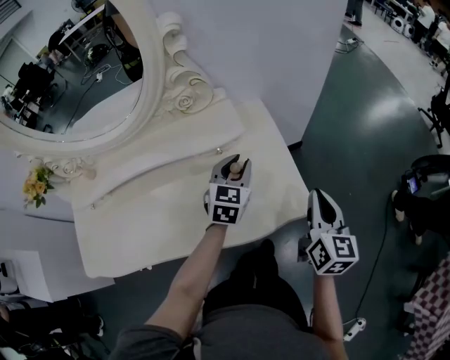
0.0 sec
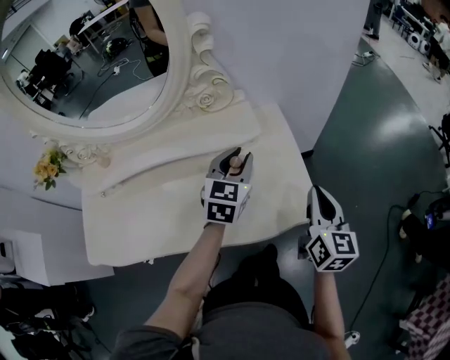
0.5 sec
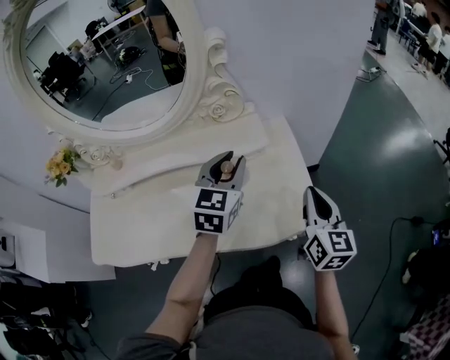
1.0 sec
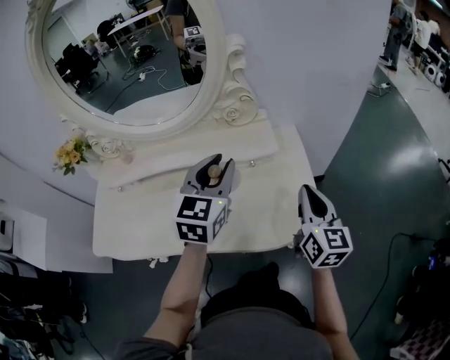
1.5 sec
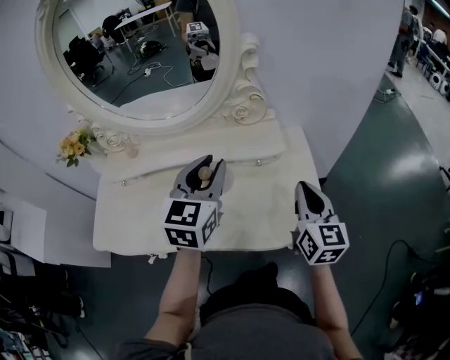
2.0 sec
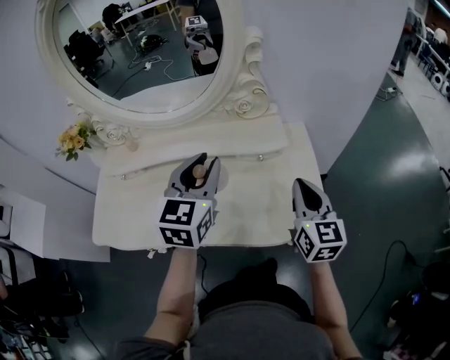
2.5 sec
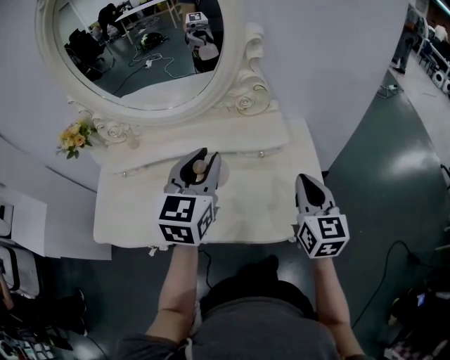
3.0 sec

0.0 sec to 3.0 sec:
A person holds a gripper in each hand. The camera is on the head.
0.0 sec to 1.5 sec: The left gripper goes some 20 cm upward and to the left. The right gripper goes about 10 cm to the left and upward.
1.5 sec to 3.0 sec: The left gripper is displaced to the left by roughly 5 cm.

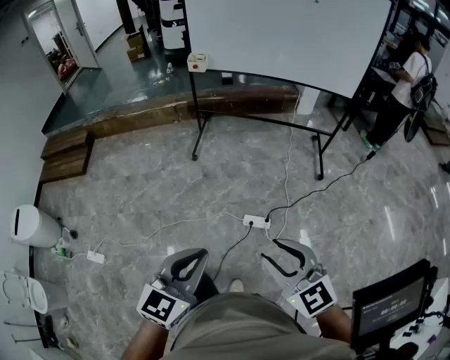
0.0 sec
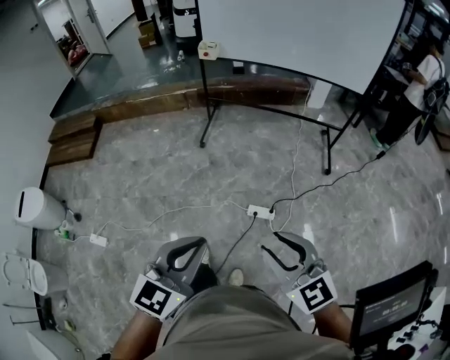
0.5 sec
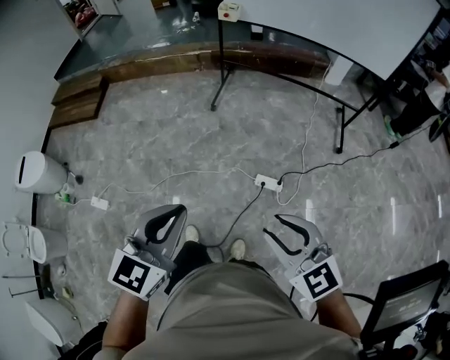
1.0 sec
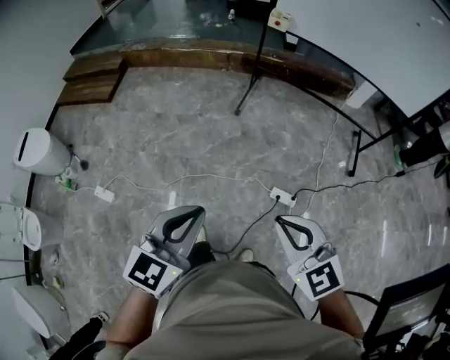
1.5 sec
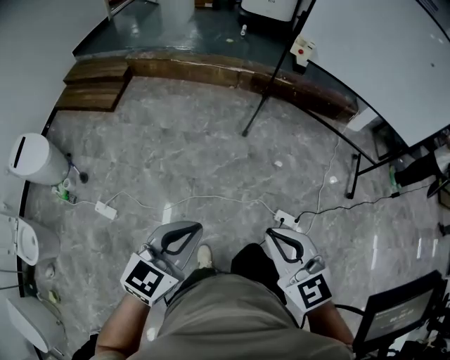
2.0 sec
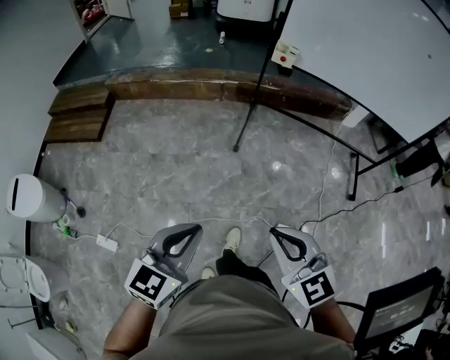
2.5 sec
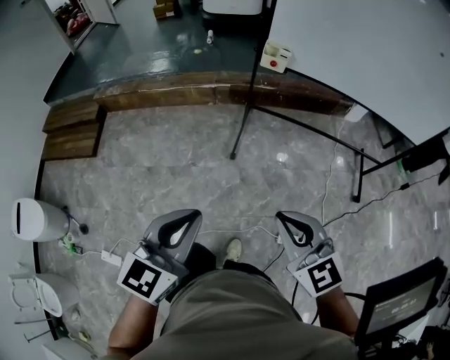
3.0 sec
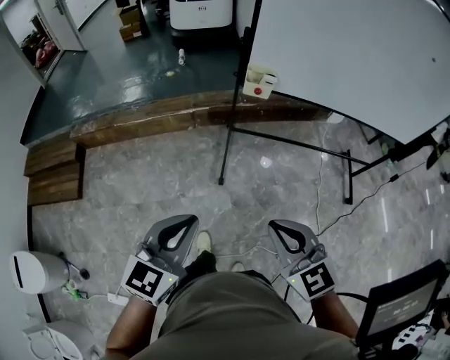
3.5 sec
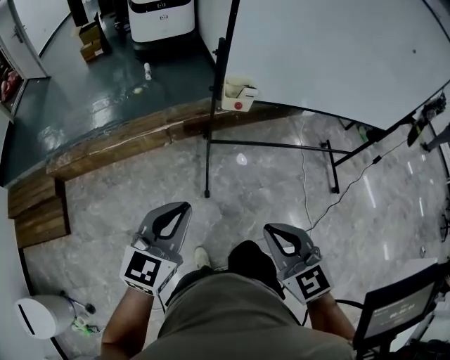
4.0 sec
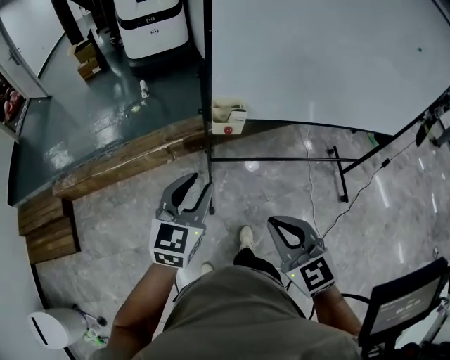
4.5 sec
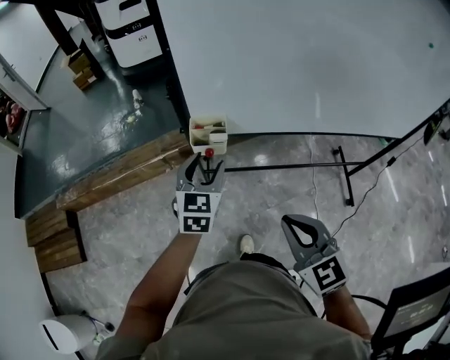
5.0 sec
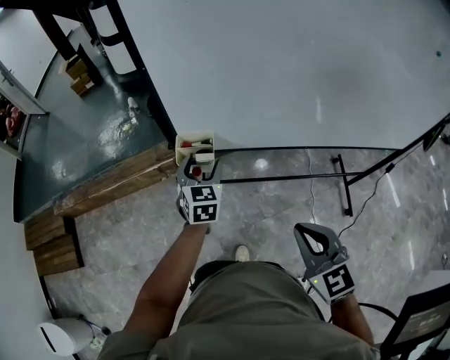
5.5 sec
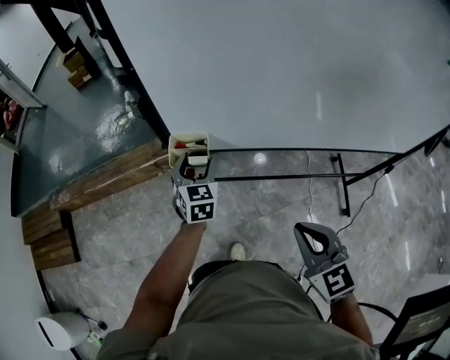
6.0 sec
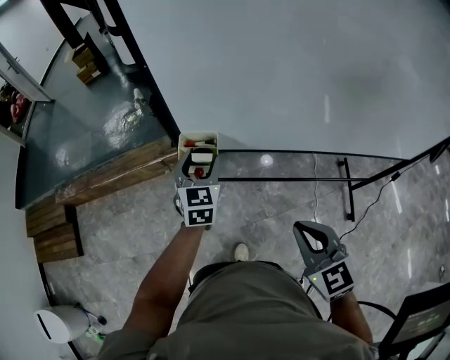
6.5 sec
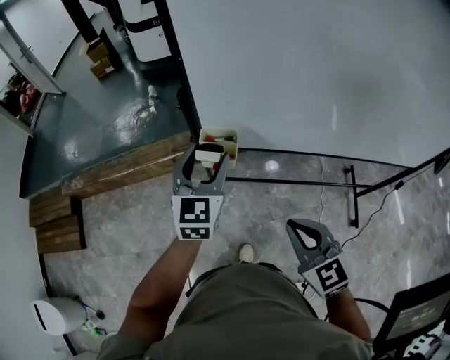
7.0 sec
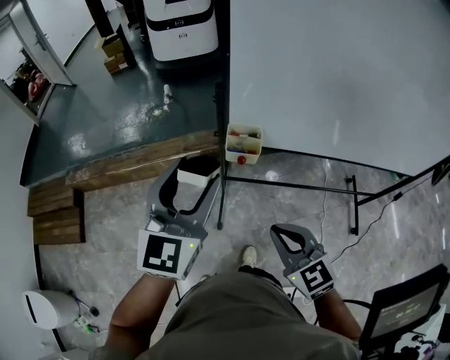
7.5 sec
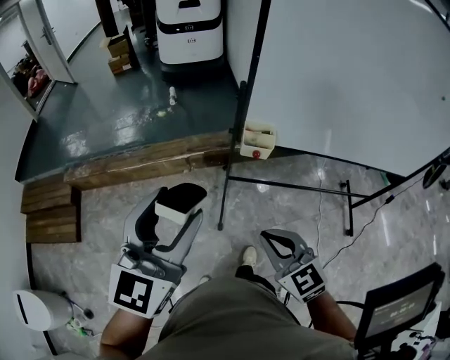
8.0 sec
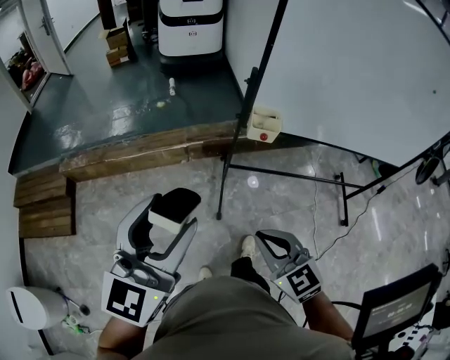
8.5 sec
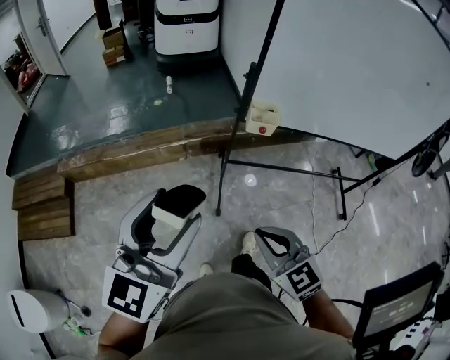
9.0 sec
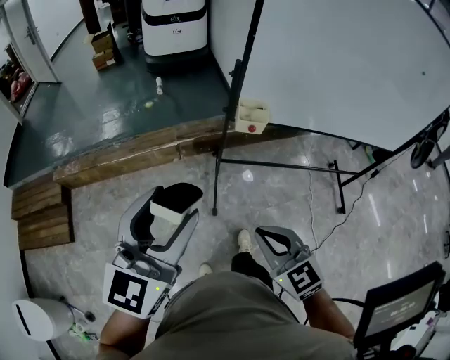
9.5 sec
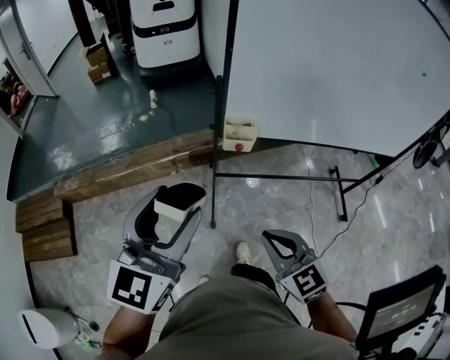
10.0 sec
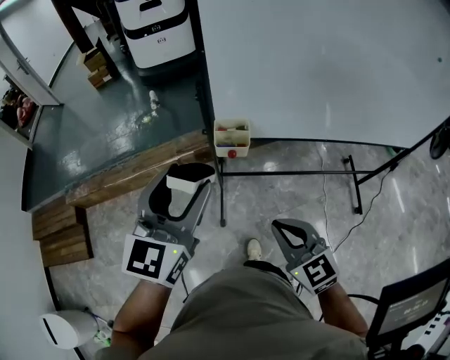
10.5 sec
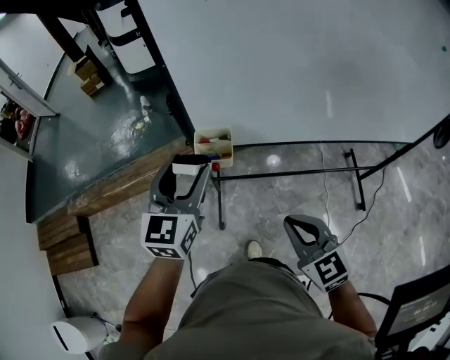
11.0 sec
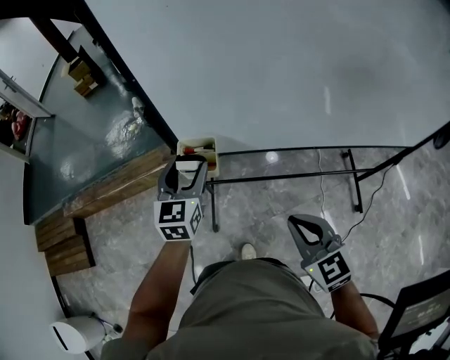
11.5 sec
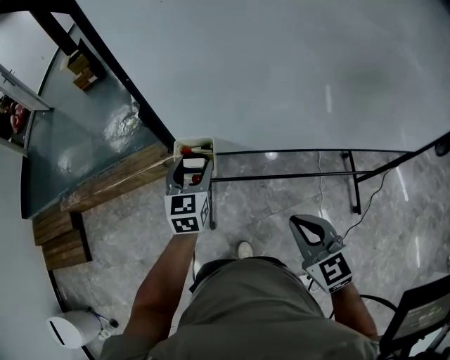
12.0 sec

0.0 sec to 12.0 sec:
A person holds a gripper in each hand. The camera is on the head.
0.0 sec to 2.0 sec: The grippers both shift to the left by about 35 cm. The right gripper closes.
2.0 sec to 4.0 sec: The pair of grippers is taken forward, approximately 60 cm. The right gripper changes its angle by about 30 degrees.
4.0 sec to 6.0 sec: The left gripper heads forward and to the right, covering some 50 cm, rotates roughly 30 degrees, and opens up; the right gripper heads to the right and forward, covering approximately 40 cm.
6.0 sec to 8.0 sec: The right gripper heads to the left, covering some 30 cm; the left gripper goes some 50 cm to the left, upward and backward, and changes its angle by about 30 degrees.
10.0 sec to 12.0 sec: The left gripper heads forward, downward and to the right, covering roughly 40 cm, and rotates approximately 20 degrees, while the right gripper shifts some 30 cm to the right and forward.

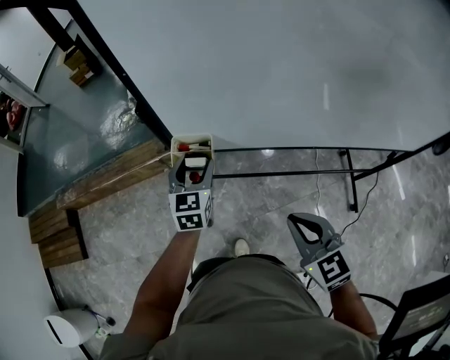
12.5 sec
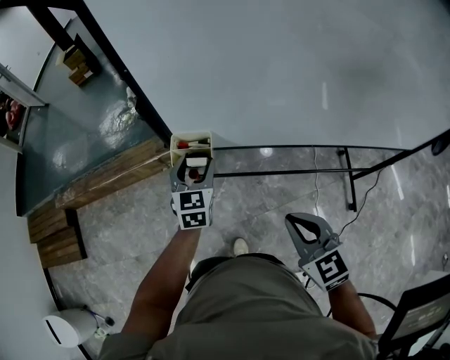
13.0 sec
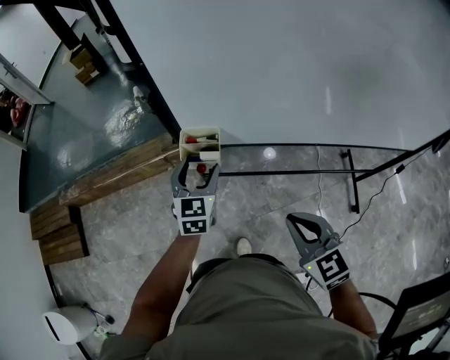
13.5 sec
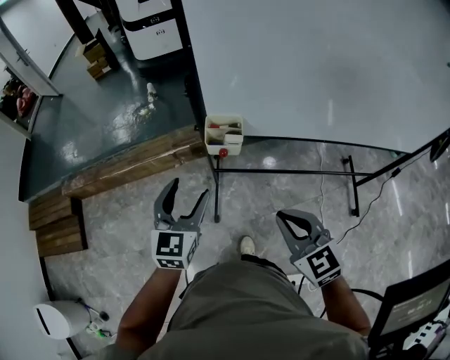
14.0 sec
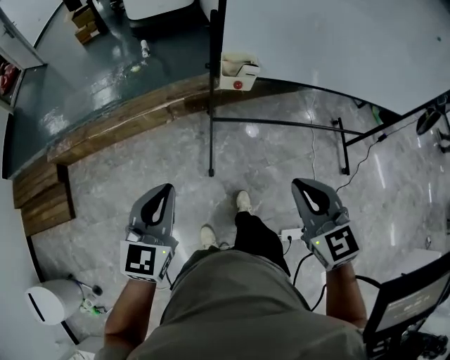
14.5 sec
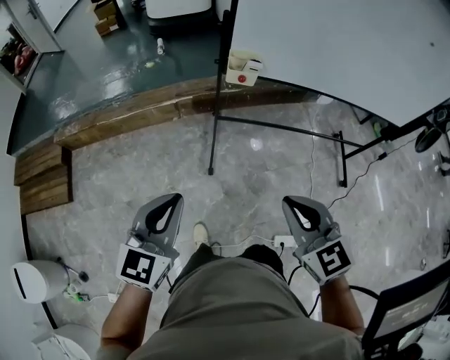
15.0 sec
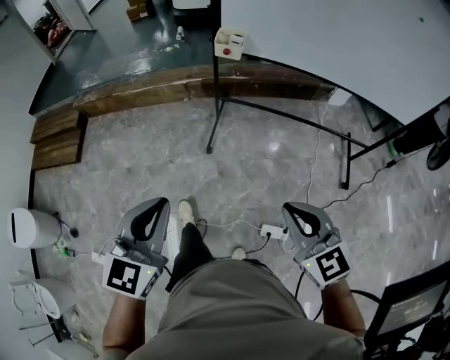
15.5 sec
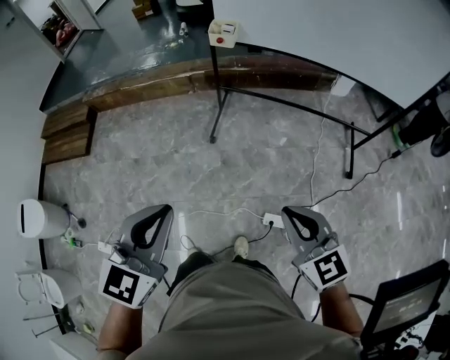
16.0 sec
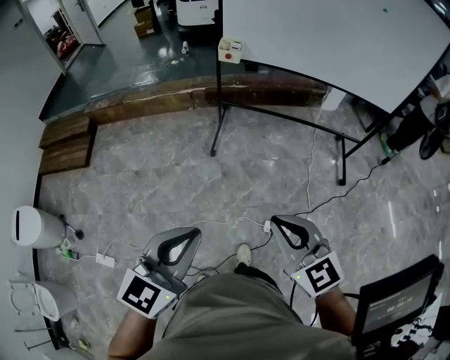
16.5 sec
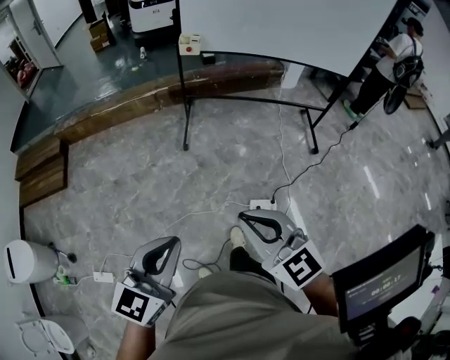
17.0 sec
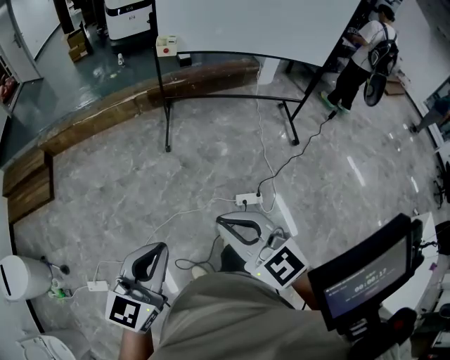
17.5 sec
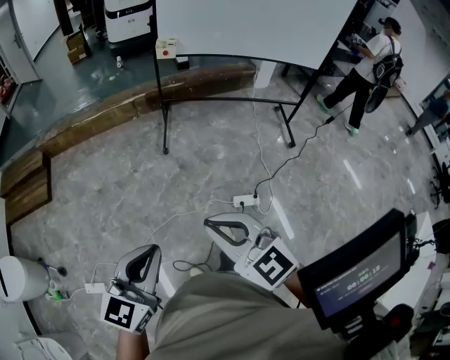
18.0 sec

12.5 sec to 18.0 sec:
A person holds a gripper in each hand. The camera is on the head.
12.5 sec to 14.5 sec: The right gripper travels to the left and backward by some 25 cm, while the left gripper travels backward and to the left by about 40 cm, and closes.
14.5 sec to 16.0 sec: The two grippers travel together, backward and to the right, approximately 40 cm.
16.0 sec to 18.0 sec: The two grippers go about 35 cm backward and to the left.

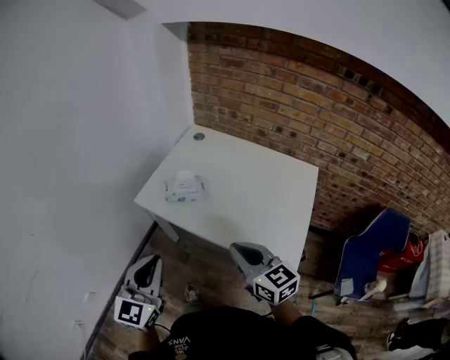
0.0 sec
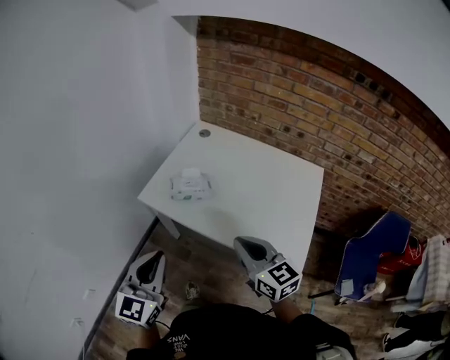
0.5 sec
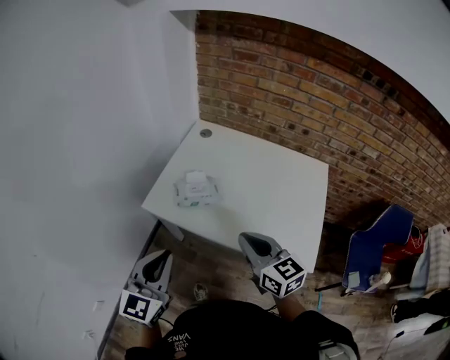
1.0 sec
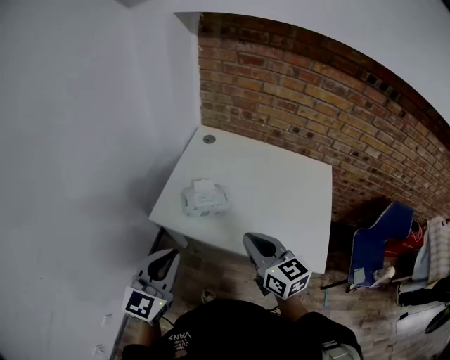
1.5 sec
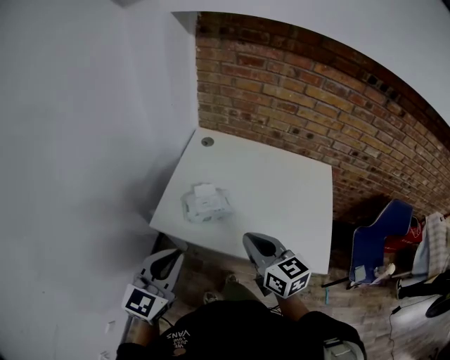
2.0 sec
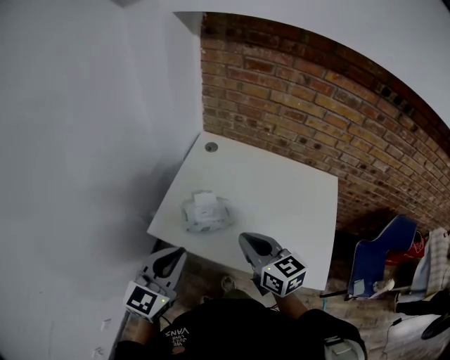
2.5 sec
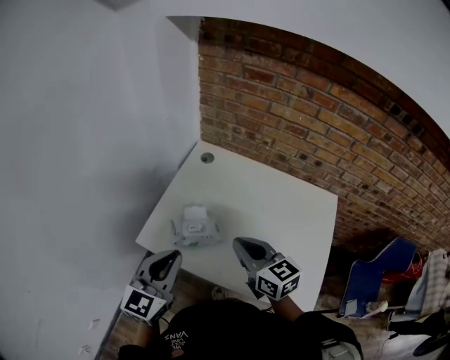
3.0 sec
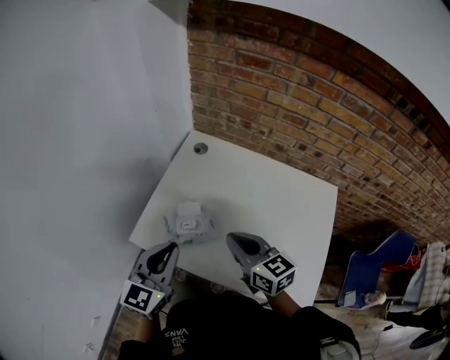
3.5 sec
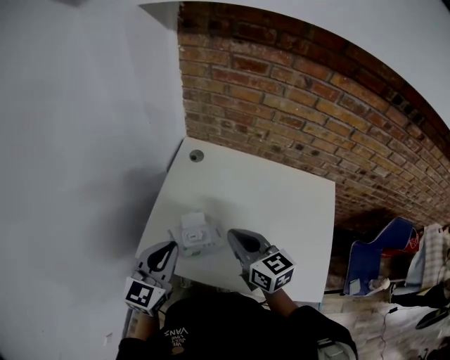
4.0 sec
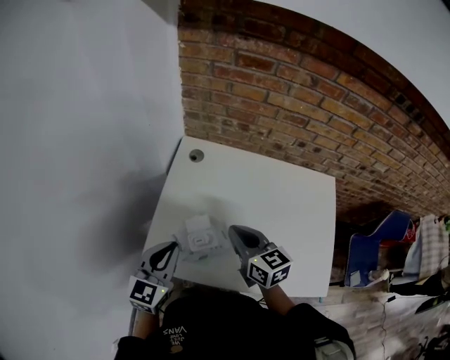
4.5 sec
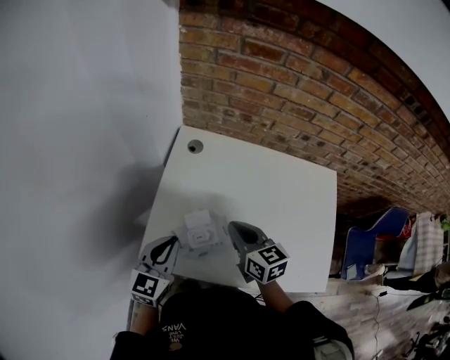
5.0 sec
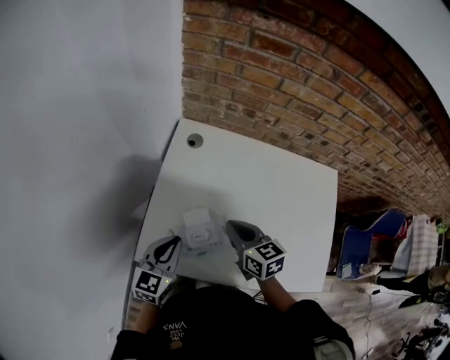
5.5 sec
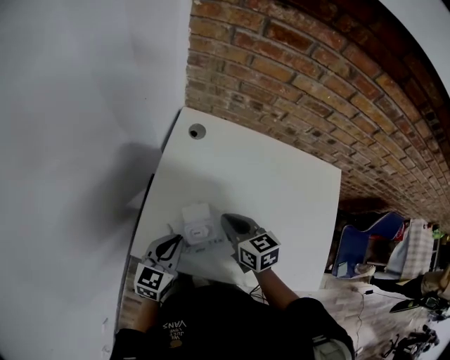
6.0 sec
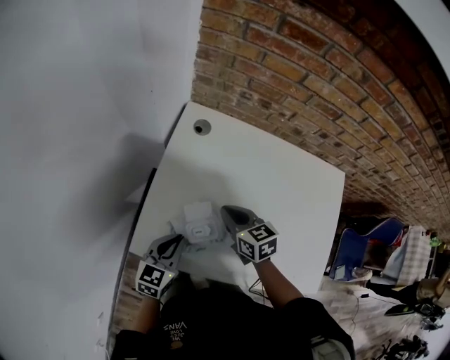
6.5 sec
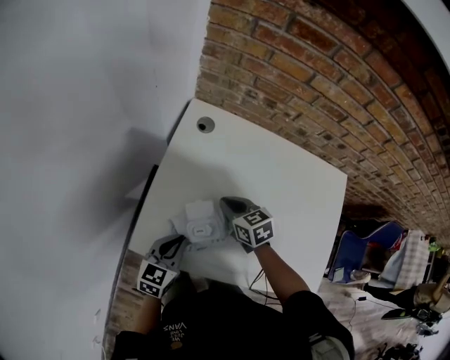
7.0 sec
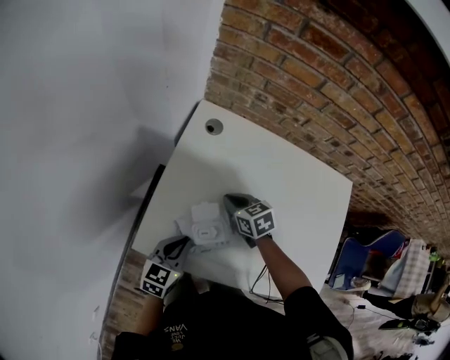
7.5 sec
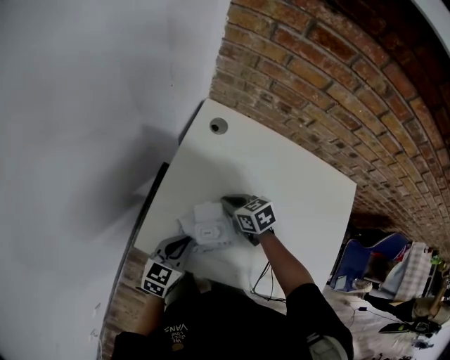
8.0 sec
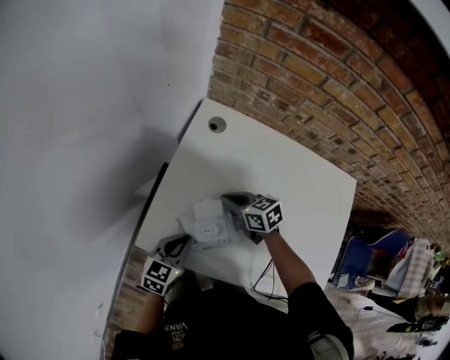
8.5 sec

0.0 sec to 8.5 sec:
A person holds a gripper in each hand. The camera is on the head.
0.0 sec to 2.0 sec: The two grippers go about 20 cm forward and to the left. The left gripper changes its angle by some 20 degrees.
2.0 sec to 4.0 sec: Both grippers move forward, approximately 20 cm.
4.0 sec to 6.5 sec: The right gripper is displaced downward and forward by roughly 20 cm, while the left gripper travels downward by roughly 20 cm.
6.5 sec to 8.5 sec: The right gripper changes place by approximately 5 cm, and rotates about 20 degrees.
